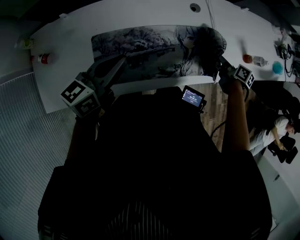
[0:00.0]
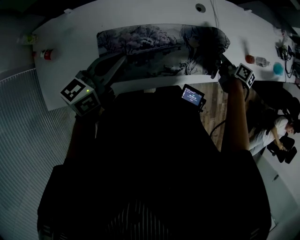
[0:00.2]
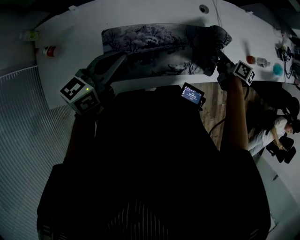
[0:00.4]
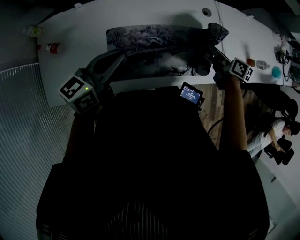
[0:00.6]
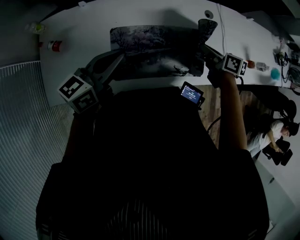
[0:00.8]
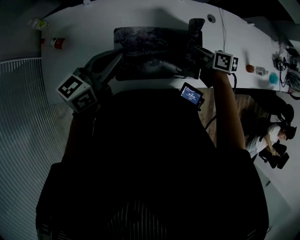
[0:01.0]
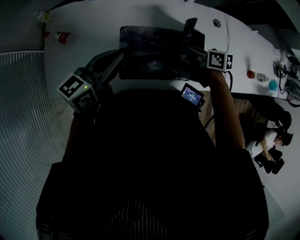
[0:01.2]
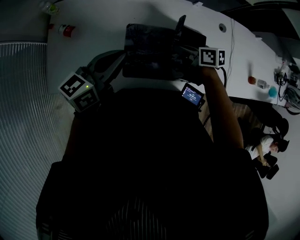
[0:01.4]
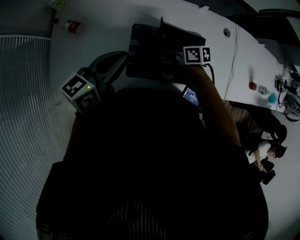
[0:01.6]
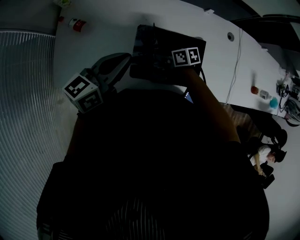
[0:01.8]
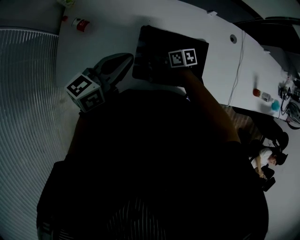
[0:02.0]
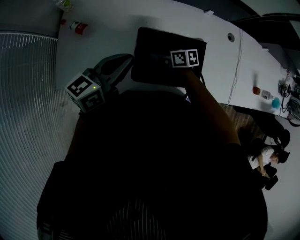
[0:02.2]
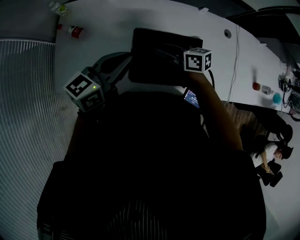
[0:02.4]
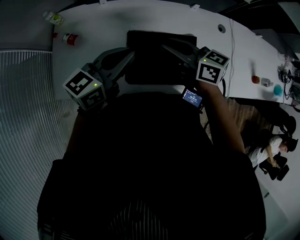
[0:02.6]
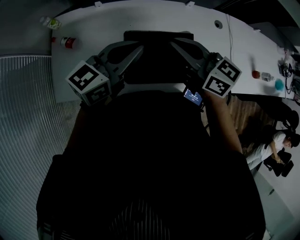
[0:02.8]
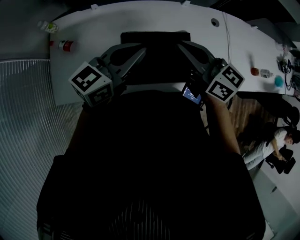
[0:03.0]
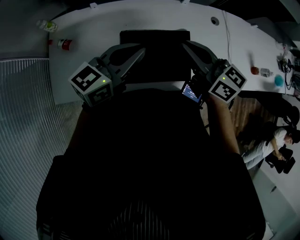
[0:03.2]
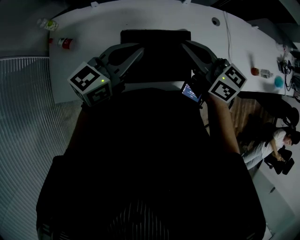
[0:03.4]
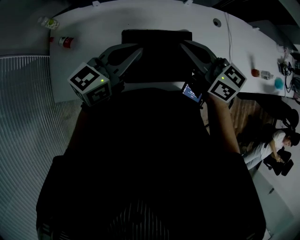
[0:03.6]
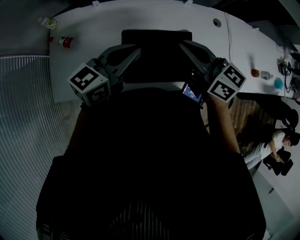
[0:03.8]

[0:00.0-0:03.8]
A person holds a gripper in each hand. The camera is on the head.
0:00.0 to 0:01.2: The right gripper heads to the left, covering about 35 cm, and swivels roughly 40 degrees. Meanwhile the left gripper goes some 15 cm to the left.
0:01.2 to 0:02.6: The right gripper shifts about 20 cm to the left and upward, and turns by some 30 degrees.
0:02.6 to 0:03.8: The right gripper shifts some 10 cm to the right and upward.

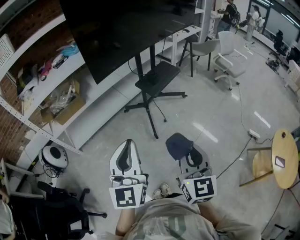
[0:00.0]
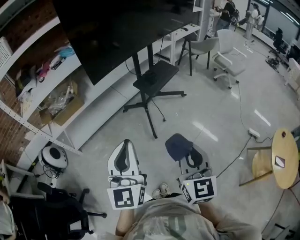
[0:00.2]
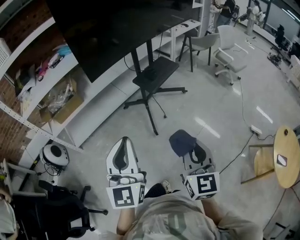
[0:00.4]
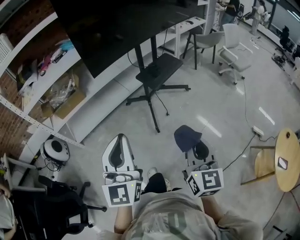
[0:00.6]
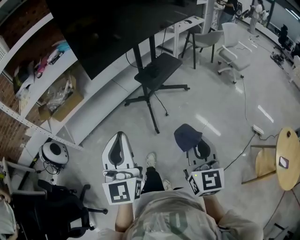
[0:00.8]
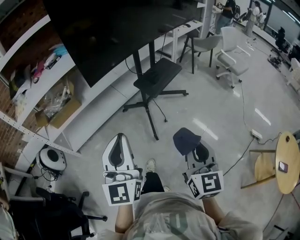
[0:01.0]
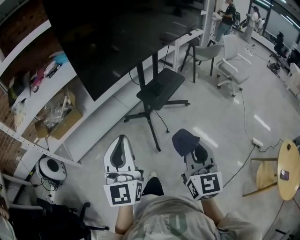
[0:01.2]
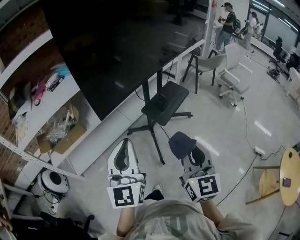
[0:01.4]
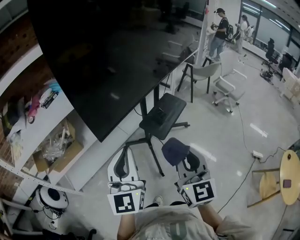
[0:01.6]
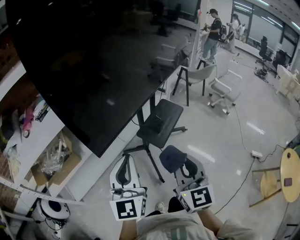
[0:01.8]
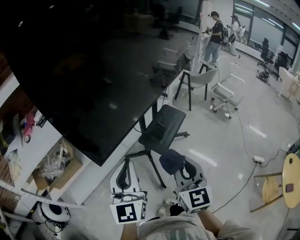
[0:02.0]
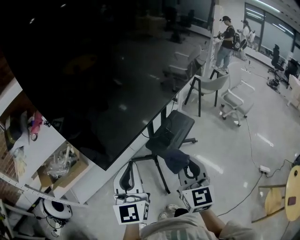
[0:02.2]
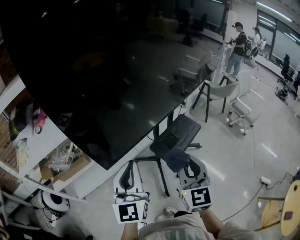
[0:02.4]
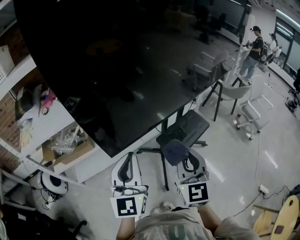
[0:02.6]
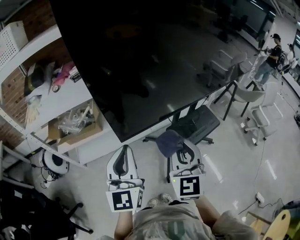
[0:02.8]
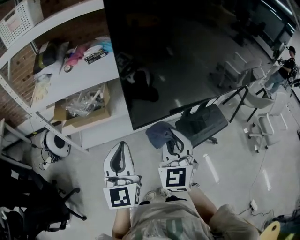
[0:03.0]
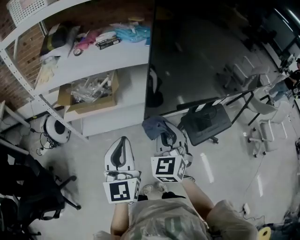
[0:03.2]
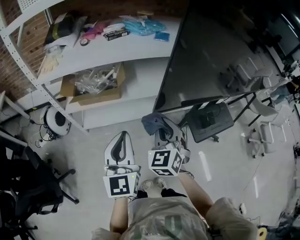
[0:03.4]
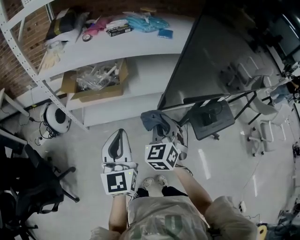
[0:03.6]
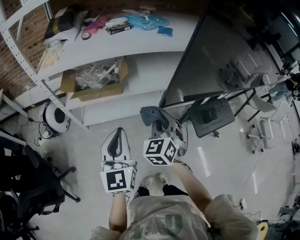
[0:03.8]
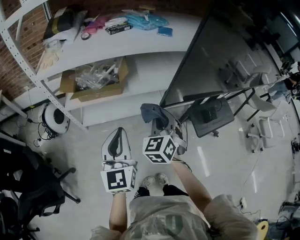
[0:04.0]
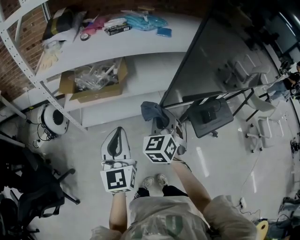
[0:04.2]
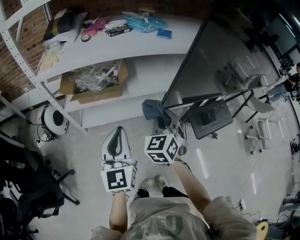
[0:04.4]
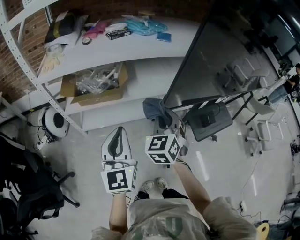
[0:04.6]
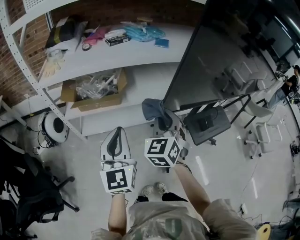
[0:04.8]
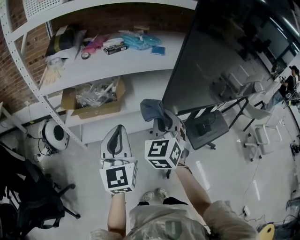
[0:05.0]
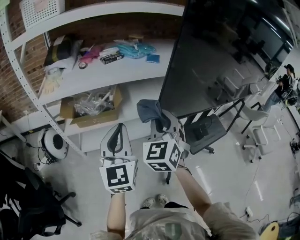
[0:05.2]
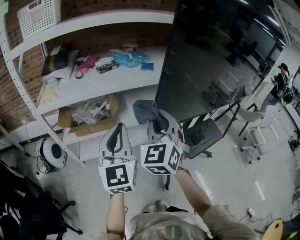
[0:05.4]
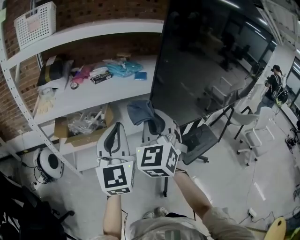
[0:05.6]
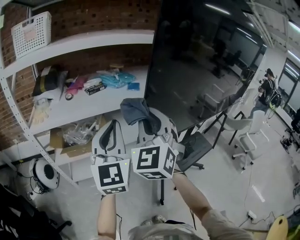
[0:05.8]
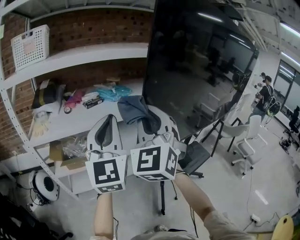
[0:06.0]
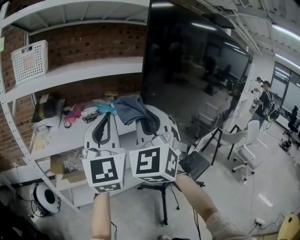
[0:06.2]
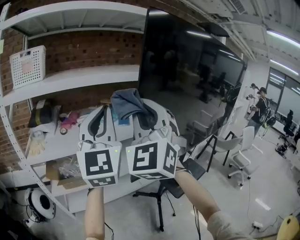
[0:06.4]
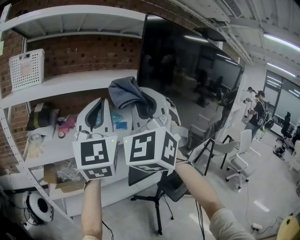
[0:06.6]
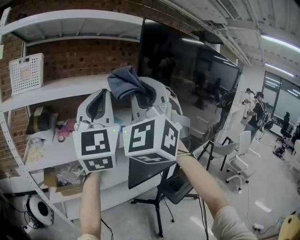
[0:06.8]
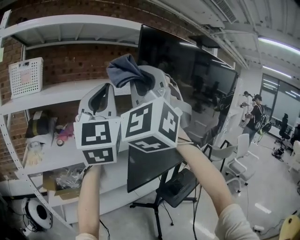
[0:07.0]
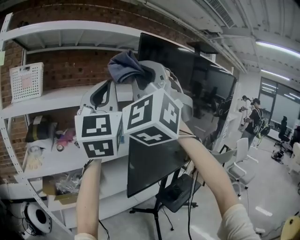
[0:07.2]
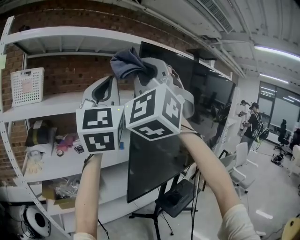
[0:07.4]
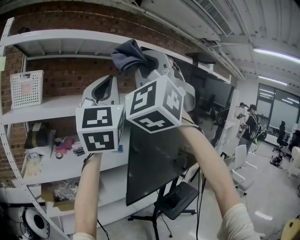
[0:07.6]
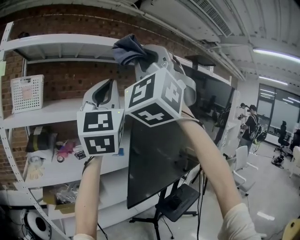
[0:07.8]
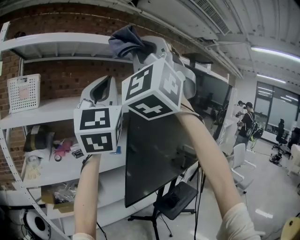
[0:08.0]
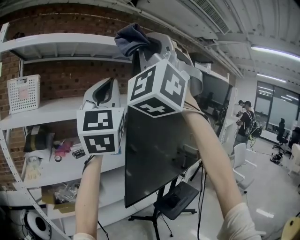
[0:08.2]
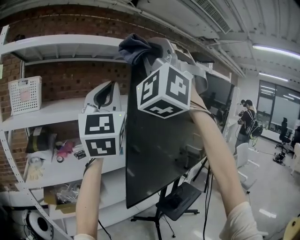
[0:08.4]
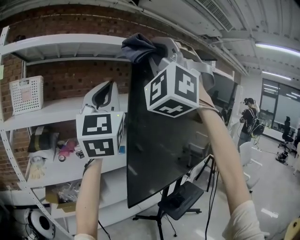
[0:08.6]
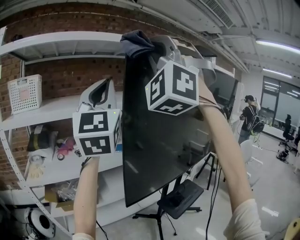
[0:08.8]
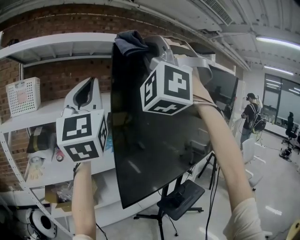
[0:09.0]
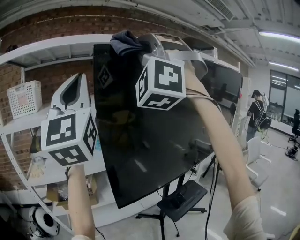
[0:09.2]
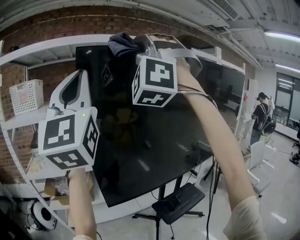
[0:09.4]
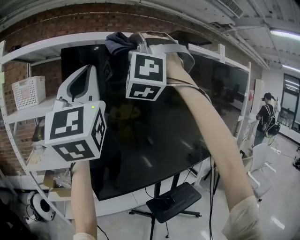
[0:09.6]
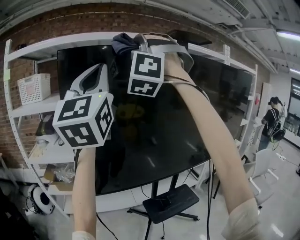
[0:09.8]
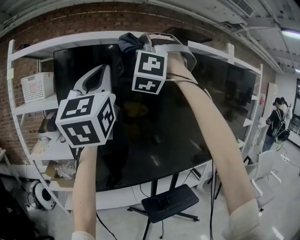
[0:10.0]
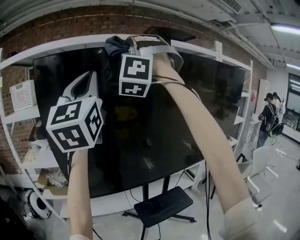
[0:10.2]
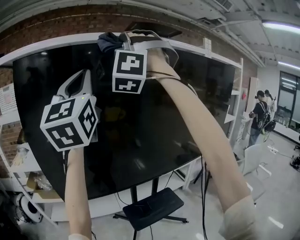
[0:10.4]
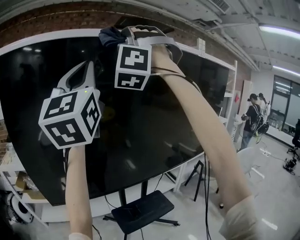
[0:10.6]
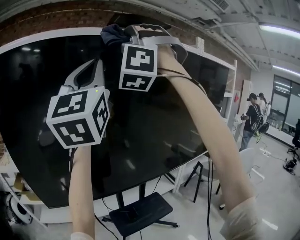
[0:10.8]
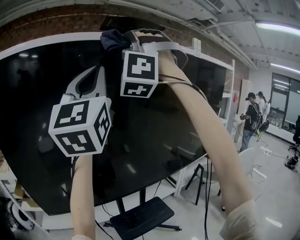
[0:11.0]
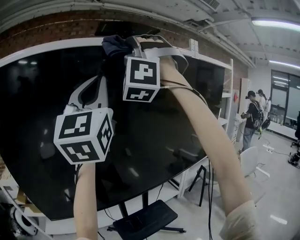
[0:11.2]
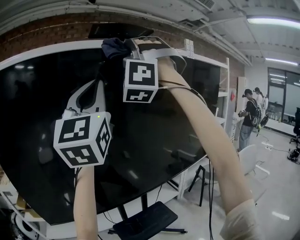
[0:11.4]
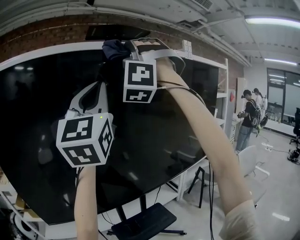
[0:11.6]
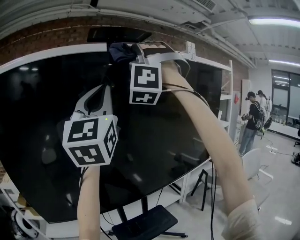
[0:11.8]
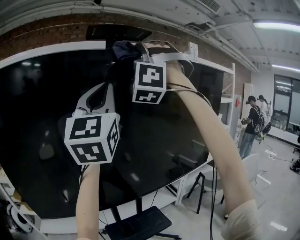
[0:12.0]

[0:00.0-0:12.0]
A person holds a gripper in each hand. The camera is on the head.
0:00.0 to 0:01.6: Both grippers travel together forward, roughly 30 cm.
0:01.6 to 0:03.0: The right gripper ends up roughly 20 cm from where it was, and swivels about 30 degrees. Meanwhile the left gripper ends up about 10 cm from where it was, and rotates some 30 degrees.
0:03.0 to 0:04.4: The right gripper is displaced to the left, downward and forward by roughly 15 cm. Meanwhile the left gripper shifts about 15 cm to the left and downward.
0:04.4 to 0:06.0: The two grippers go some 30 cm upward. The left gripper changes its angle by roughly 30 degrees. The right gripper angles its fingers upward, by about 30 degrees.
0:06.0 to 0:07.6: The grippers both shift upward by roughly 30 cm. The right gripper turns by about 30 degrees.
0:07.6 to 0:09.0: The right gripper goes some 10 cm to the right, and rotates about 30 degrees.
0:09.0 to 0:10.4: The right gripper heads to the right and forward, covering about 30 cm. Meanwhile the left gripper heads to the right, covering roughly 30 cm.
0:10.4 to 0:12.0: The grippers both shift to the right and forward by approximately 20 cm.

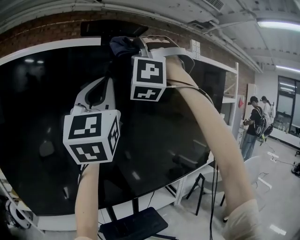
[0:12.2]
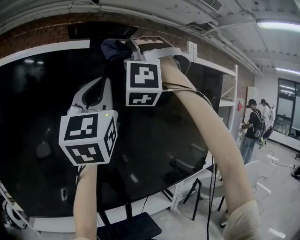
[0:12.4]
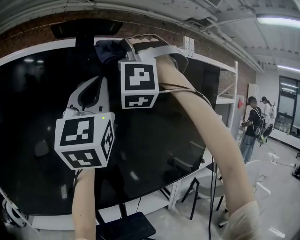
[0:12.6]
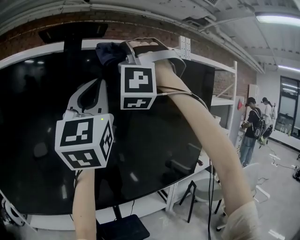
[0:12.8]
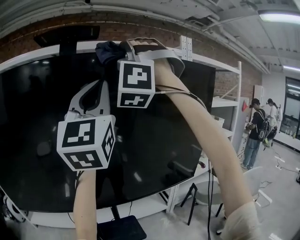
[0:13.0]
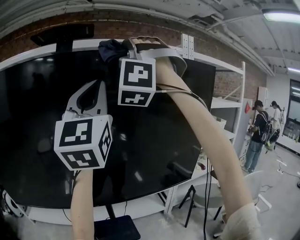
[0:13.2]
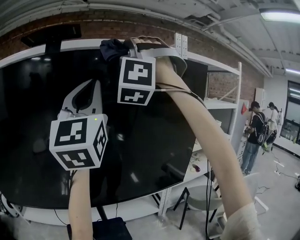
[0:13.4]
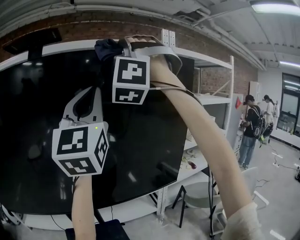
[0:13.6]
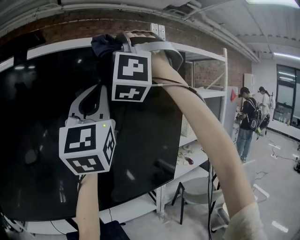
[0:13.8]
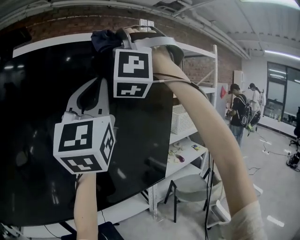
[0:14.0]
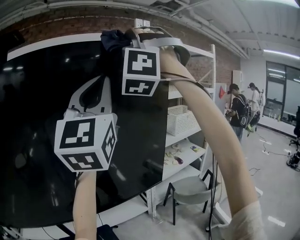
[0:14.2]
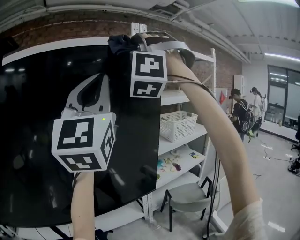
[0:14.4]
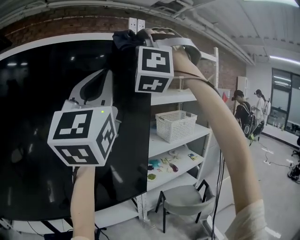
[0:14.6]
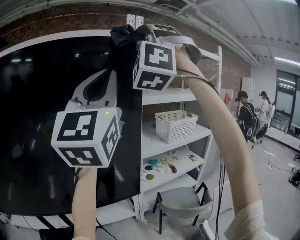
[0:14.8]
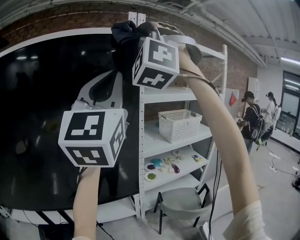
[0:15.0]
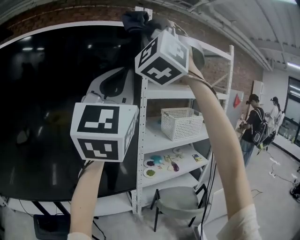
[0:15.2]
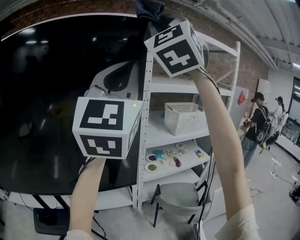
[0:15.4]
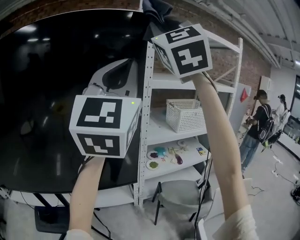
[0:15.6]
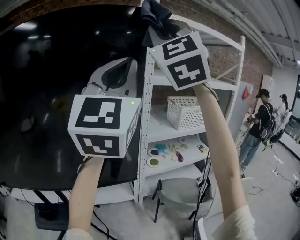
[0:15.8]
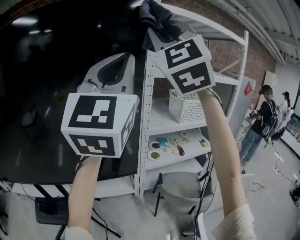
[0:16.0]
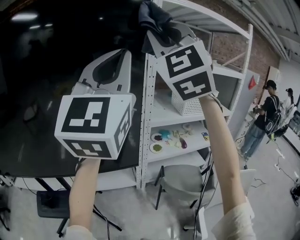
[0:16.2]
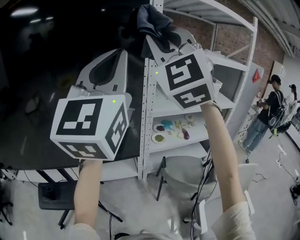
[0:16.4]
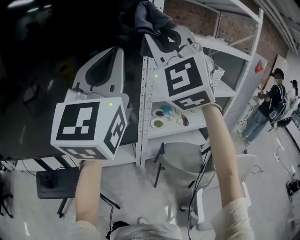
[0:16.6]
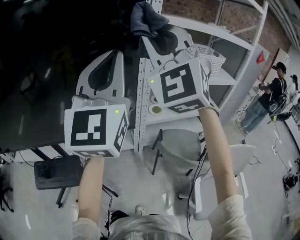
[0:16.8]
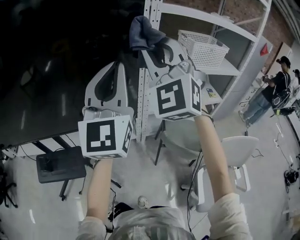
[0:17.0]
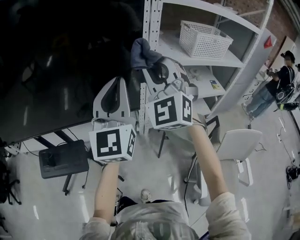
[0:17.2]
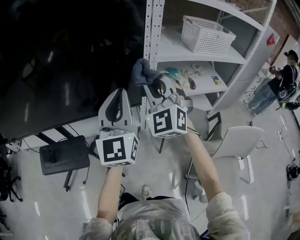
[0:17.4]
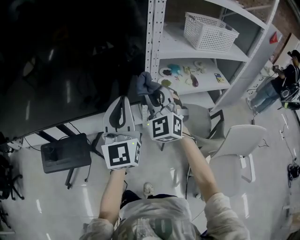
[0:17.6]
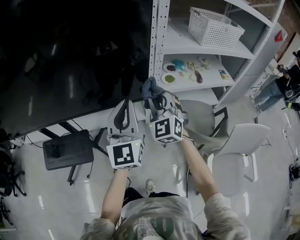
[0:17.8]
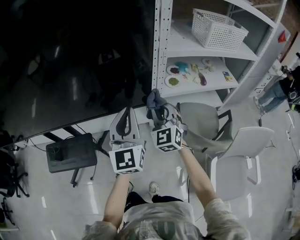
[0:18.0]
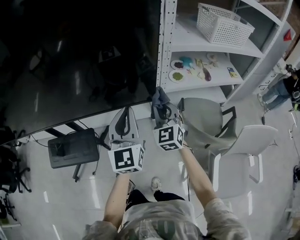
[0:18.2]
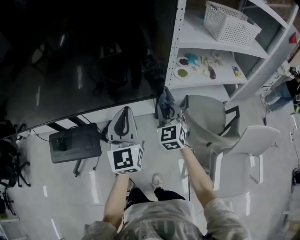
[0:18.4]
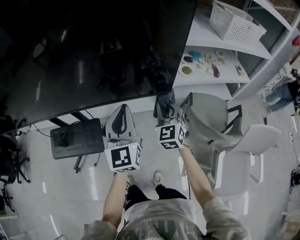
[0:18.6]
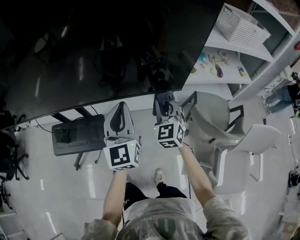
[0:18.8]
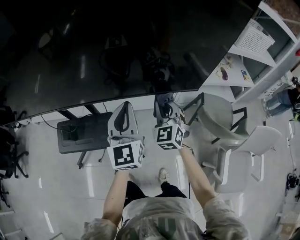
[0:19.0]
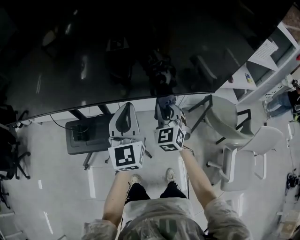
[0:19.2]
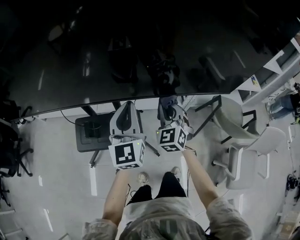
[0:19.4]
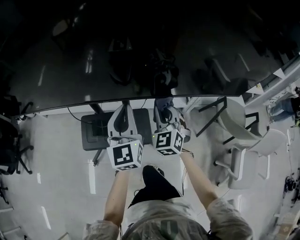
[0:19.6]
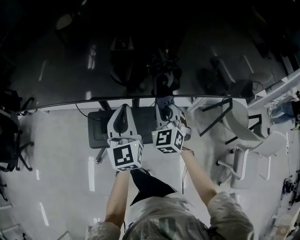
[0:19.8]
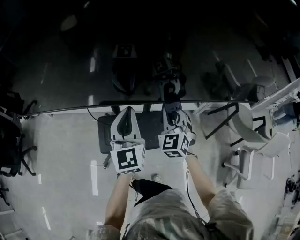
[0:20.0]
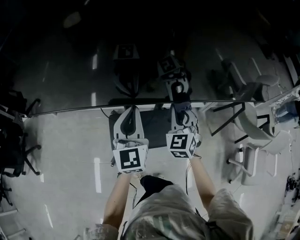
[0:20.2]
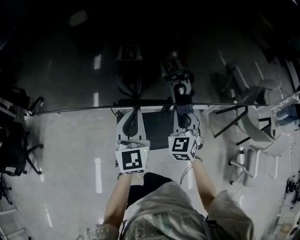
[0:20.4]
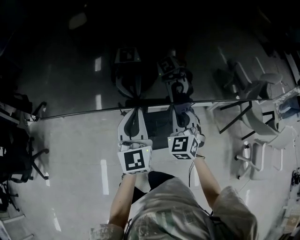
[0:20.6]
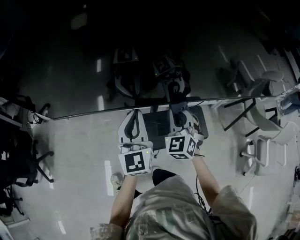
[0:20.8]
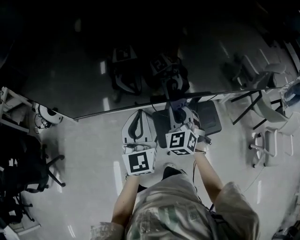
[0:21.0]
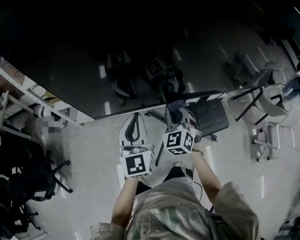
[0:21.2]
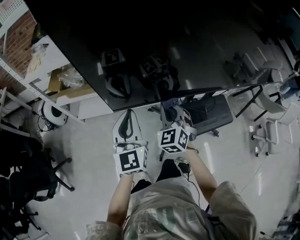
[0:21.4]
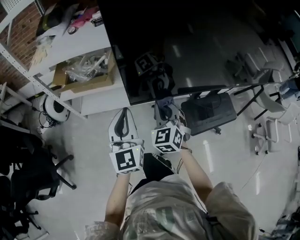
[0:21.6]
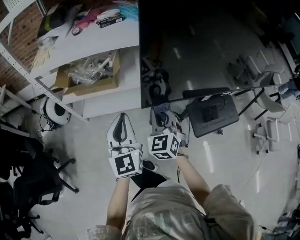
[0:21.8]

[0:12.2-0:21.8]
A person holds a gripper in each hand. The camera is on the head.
0:12.2 to 0:13.8: Both grippers move to the right, approximately 30 cm.
0:13.8 to 0:15.4: The grippers both shift to the right and forward by approximately 30 cm. The right gripper rotates around the line of its fingers by about 40 degrees, clockwise from behind.
0:15.4 to 0:17.0: The two grippers go some 30 cm downward.
0:17.0 to 0:18.6: The left gripper is displaced downward and to the left by roughly 30 cm, and swivels approximately 30 degrees, while the right gripper heads downward, covering approximately 40 cm, and rotates approximately 40 degrees.
0:18.6 to 0:20.2: The pair of grippers is taken to the left, some 50 cm.
0:20.2 to 0:21.8: The two grippers travel together, to the left, some 60 cm.
